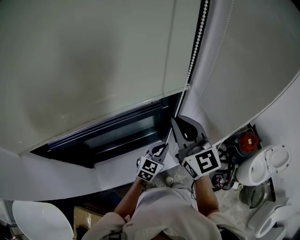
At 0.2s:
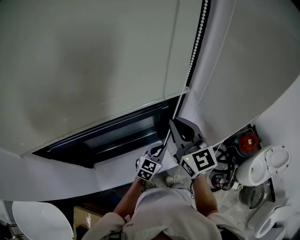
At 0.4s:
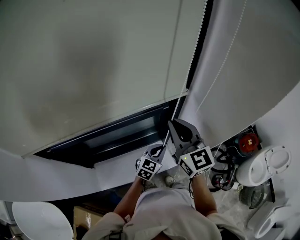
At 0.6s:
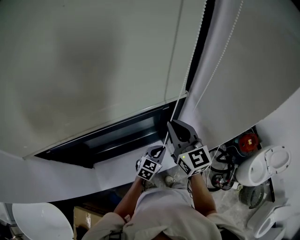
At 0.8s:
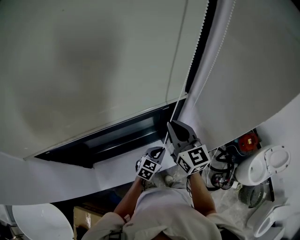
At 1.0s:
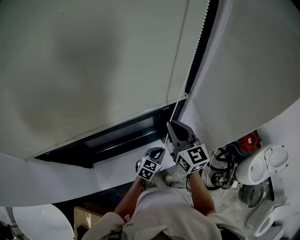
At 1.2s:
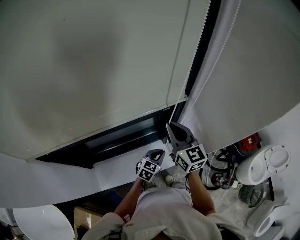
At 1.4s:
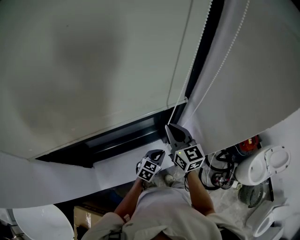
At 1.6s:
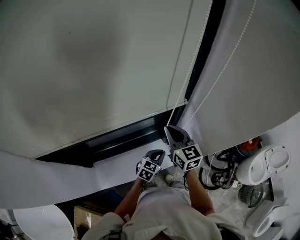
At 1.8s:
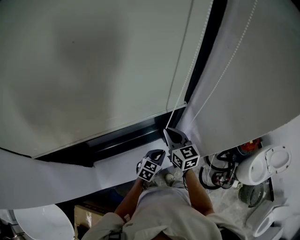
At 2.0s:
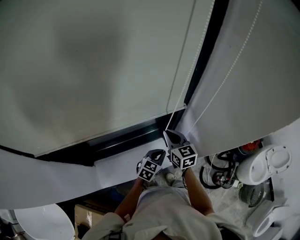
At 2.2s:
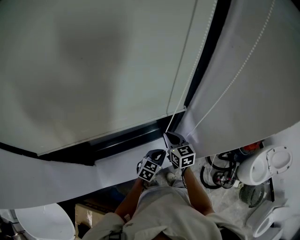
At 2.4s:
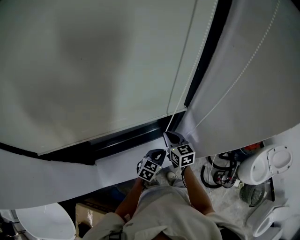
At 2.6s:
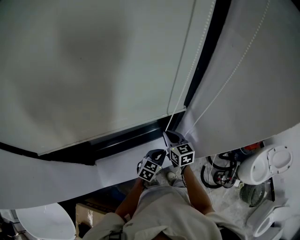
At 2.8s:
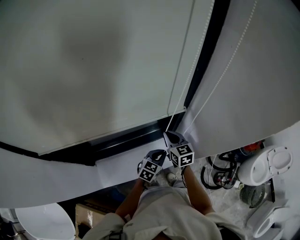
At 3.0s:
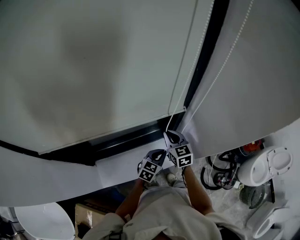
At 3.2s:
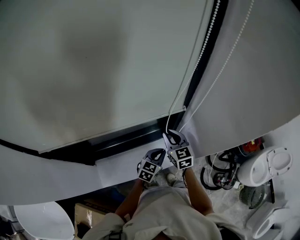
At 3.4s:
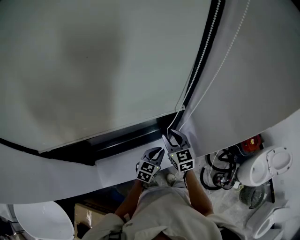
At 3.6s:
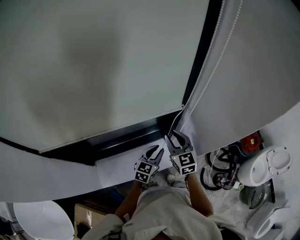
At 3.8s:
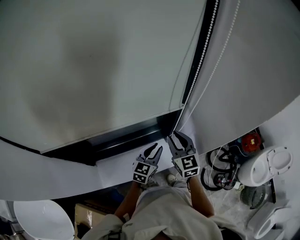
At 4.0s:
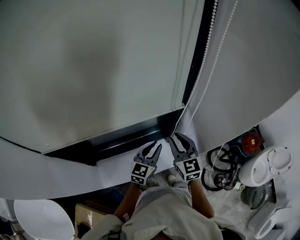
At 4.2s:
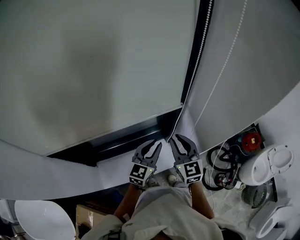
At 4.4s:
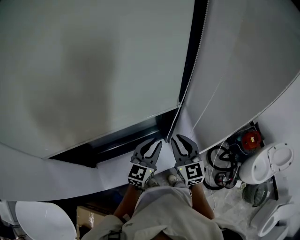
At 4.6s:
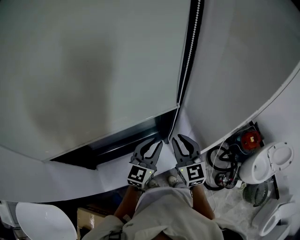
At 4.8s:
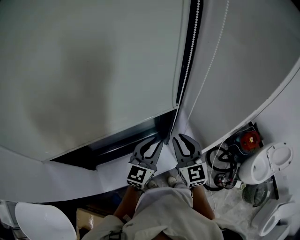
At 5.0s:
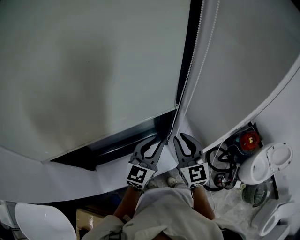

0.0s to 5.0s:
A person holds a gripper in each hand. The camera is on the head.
0.0s to 1.6s: The right gripper heads downward, covering approximately 15 cm, and changes its angle by some 20 degrees. Meanwhile the left gripper is displaced downward by about 10 cm.
1.6s to 3.4s: The right gripper moves downward, about 5 cm, and opens up.
3.4s to 5.0s: The right gripper travels upward and backward by some 15 cm. Meanwhile the left gripper travels upward by some 20 cm, and changes its angle by roughly 30 degrees.

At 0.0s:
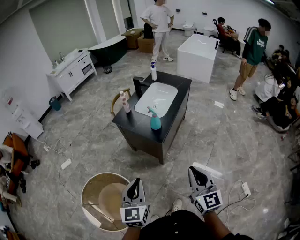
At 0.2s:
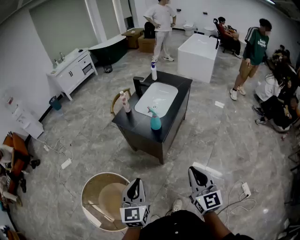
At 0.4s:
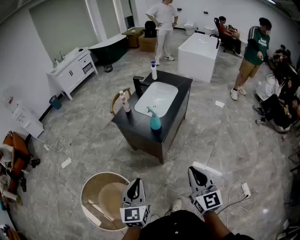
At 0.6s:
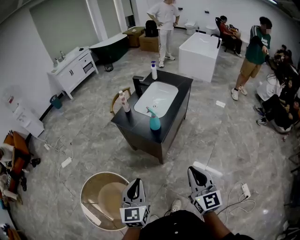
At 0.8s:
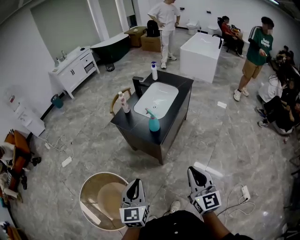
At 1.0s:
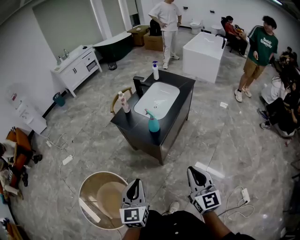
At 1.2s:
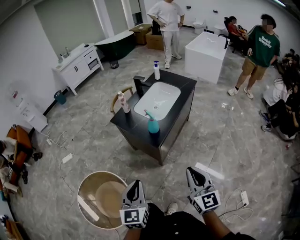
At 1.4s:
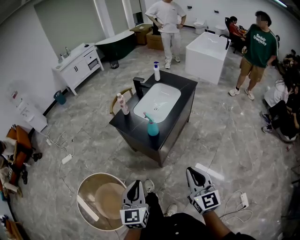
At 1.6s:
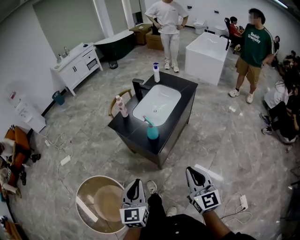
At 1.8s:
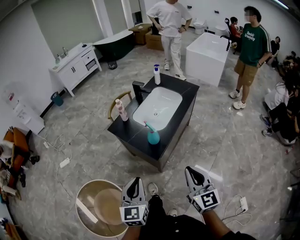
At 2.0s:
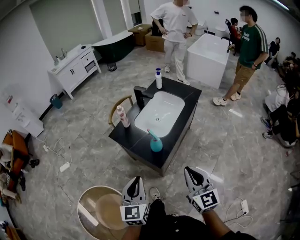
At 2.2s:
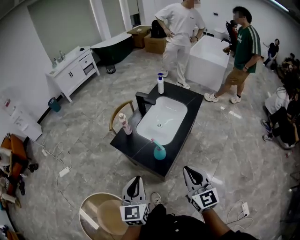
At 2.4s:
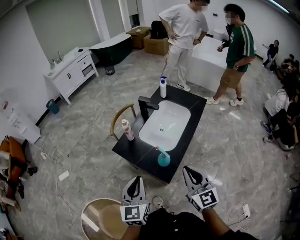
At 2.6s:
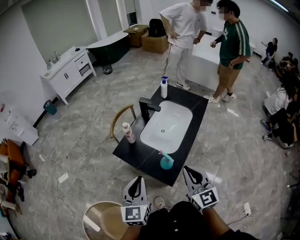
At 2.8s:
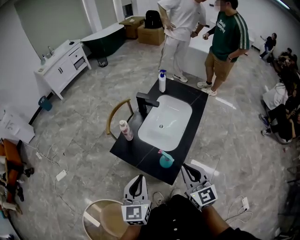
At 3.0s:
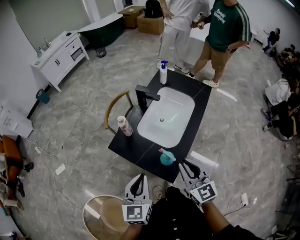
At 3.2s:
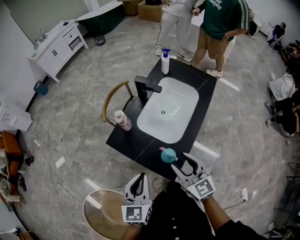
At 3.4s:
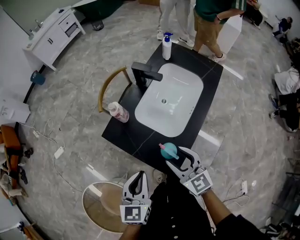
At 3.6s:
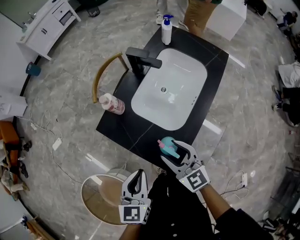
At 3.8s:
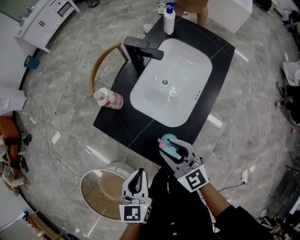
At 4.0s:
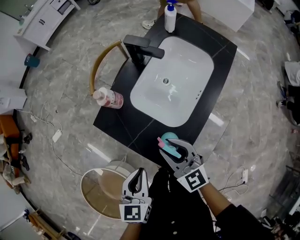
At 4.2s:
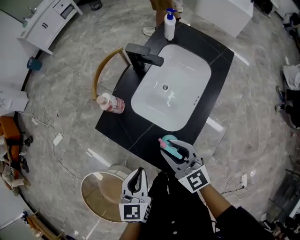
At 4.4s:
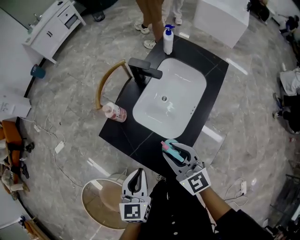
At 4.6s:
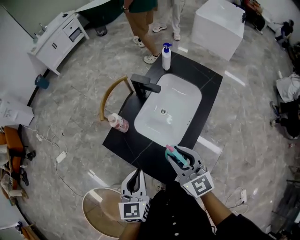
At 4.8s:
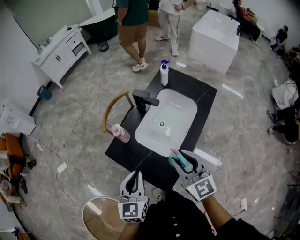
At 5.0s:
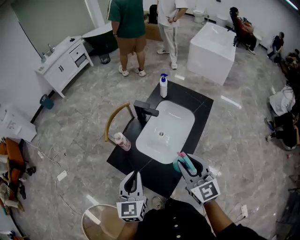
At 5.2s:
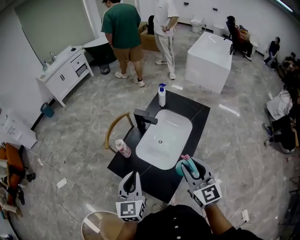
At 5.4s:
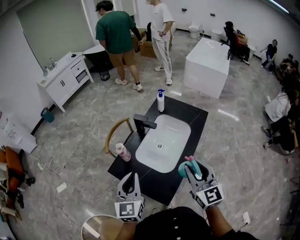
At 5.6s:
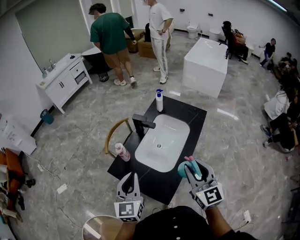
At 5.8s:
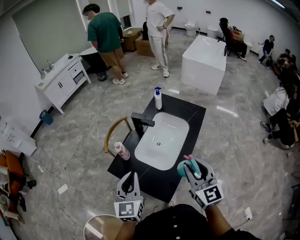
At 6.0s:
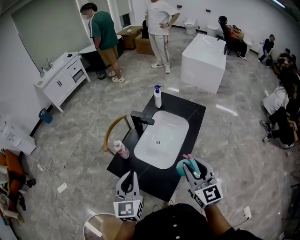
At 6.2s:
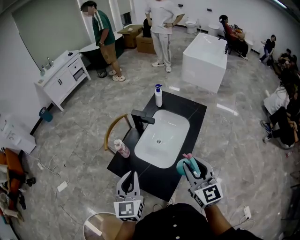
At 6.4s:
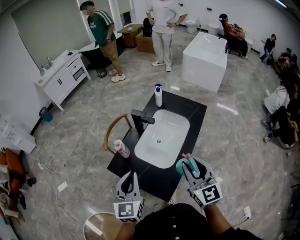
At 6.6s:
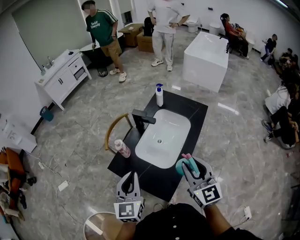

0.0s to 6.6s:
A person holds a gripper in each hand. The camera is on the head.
0.0s to 1.6s: The two grippers go approximately 10 cm forward and to the right.
1.6s to 3.2s: Both grippers move forward, approximately 30 cm. The right gripper opens its fingers.
3.2s to 5.0s: The right gripper shifts approximately 15 cm upward, to the right and forward. Meanwhile the left gripper shifts approximately 10 cm forward, and moves about 10 cm downward and comes back.
5.0s to 6.6s: The grippers move only a little.

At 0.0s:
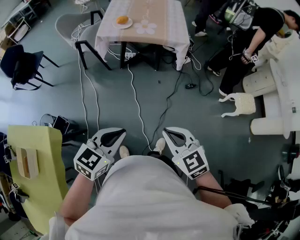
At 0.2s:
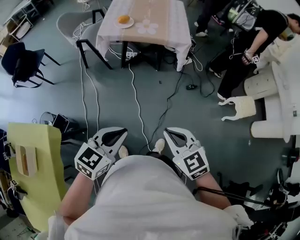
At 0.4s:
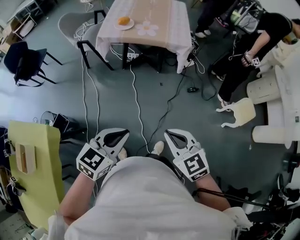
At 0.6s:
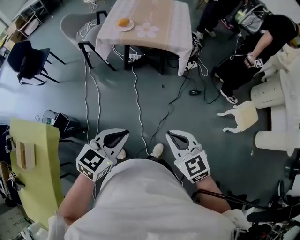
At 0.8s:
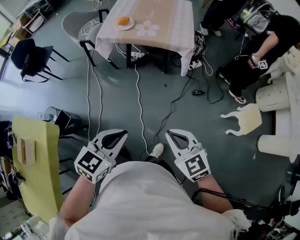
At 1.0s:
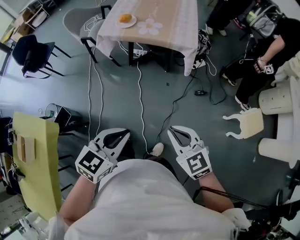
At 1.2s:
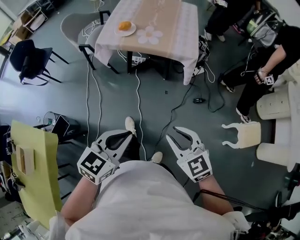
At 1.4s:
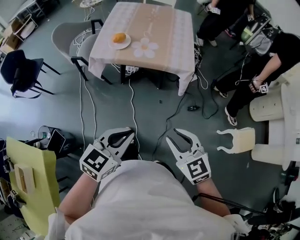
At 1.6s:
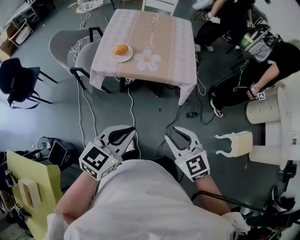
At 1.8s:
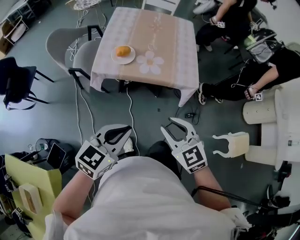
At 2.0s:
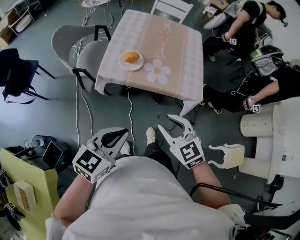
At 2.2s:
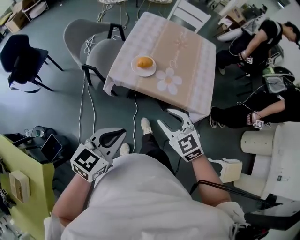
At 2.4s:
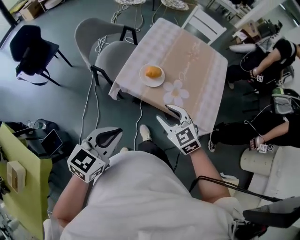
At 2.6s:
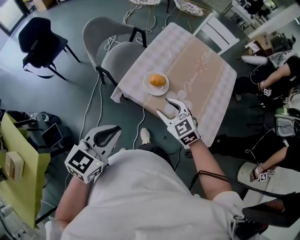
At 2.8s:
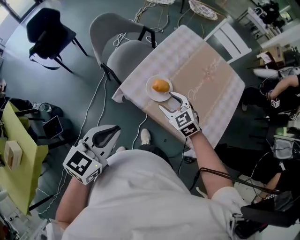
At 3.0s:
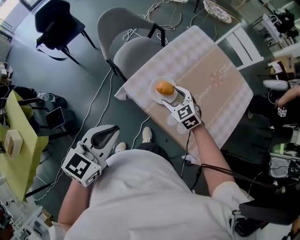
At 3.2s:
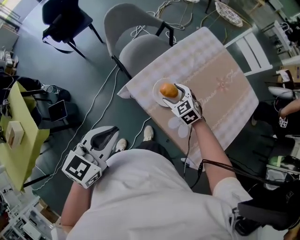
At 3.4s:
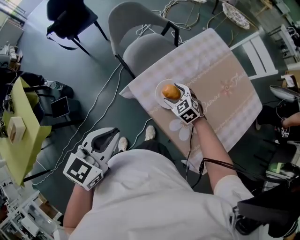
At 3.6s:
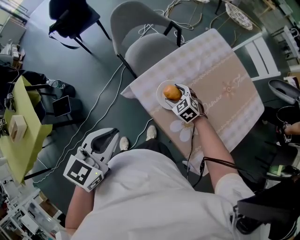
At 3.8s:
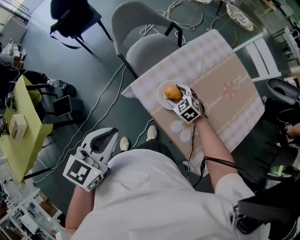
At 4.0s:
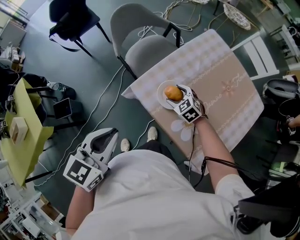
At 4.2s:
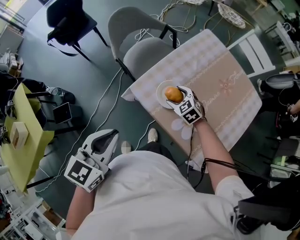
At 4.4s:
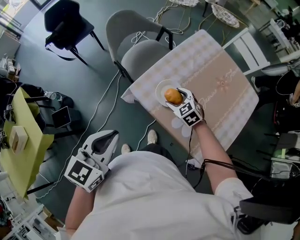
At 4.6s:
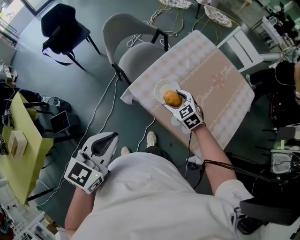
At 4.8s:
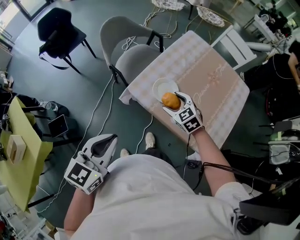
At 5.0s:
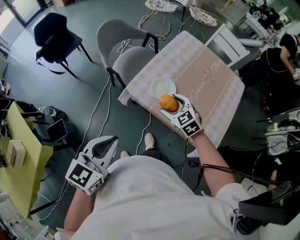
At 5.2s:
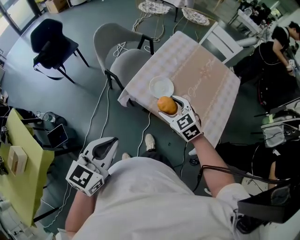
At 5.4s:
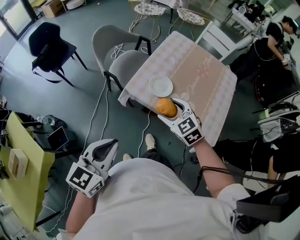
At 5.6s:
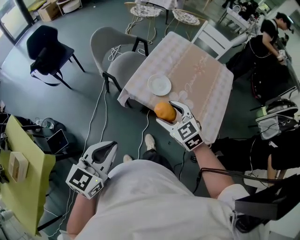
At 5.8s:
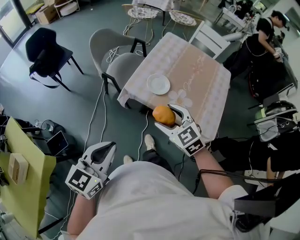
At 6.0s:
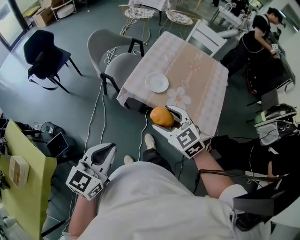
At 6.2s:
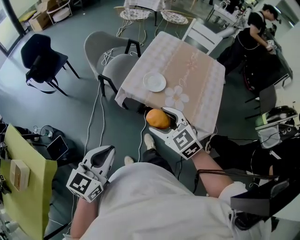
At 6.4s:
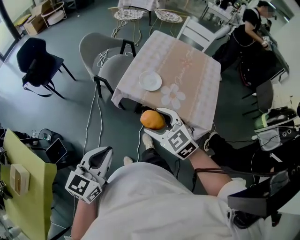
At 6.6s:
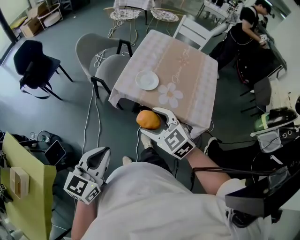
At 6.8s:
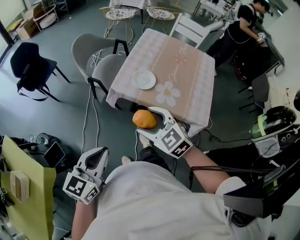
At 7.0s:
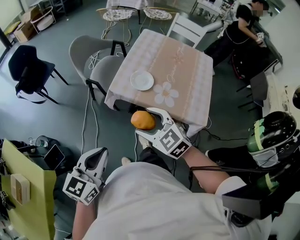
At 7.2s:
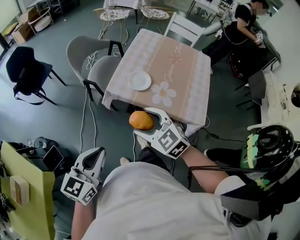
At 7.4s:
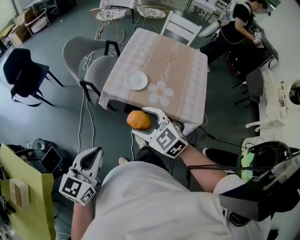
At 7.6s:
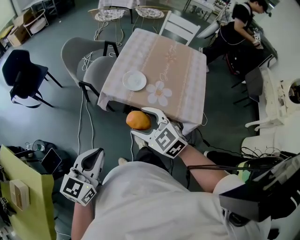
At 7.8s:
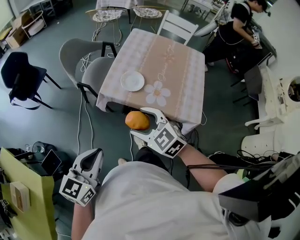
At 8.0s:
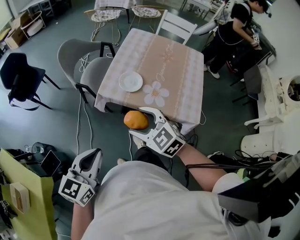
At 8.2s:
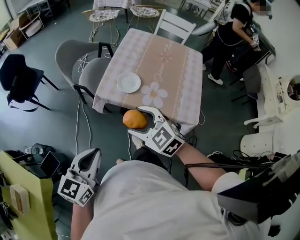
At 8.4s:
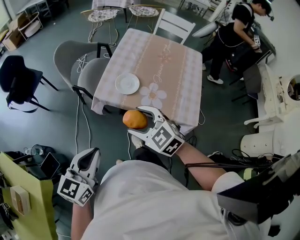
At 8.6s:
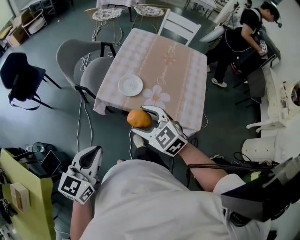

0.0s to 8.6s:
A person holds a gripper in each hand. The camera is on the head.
0.0s to 1.4s: The two grippers go some 25 cm forward.
1.4s to 2.8s: The right gripper ends up about 60 cm from where it was, rotates approximately 40 degrees, and opens its fingers, while the left gripper ends up approximately 35 cm from where it was, and rotates roughly 30 degrees.
2.8s to 4.4s: The right gripper travels downward and forward by about 10 cm.
4.4s to 5.8s: The right gripper moves backward and upward, some 30 cm. The left gripper heads backward and to the left, covering some 15 cm.
5.8s to 7.2s: The right gripper ends up some 5 cm from where it was.
7.2s to 8.6s: The left gripper moves forward, some 5 cm. The right gripper shifts roughly 5 cm to the right and forward.

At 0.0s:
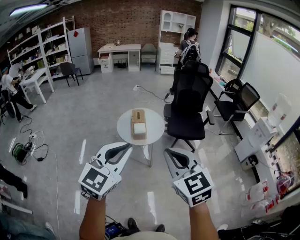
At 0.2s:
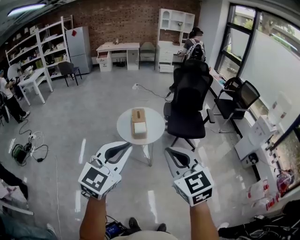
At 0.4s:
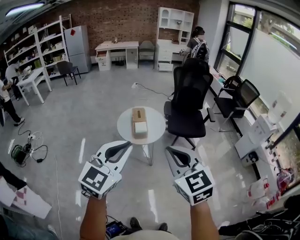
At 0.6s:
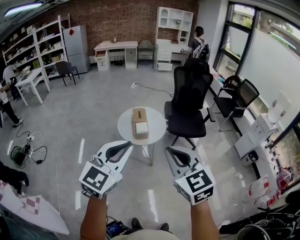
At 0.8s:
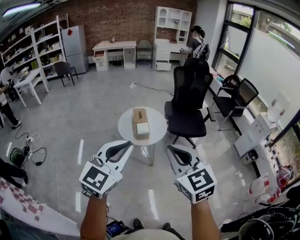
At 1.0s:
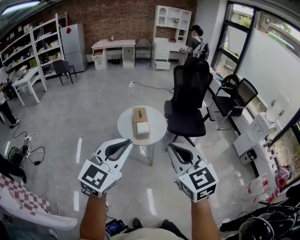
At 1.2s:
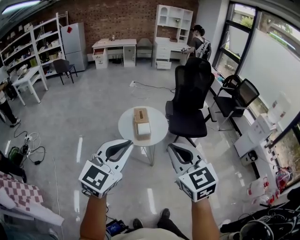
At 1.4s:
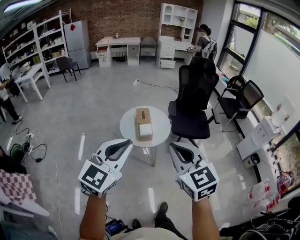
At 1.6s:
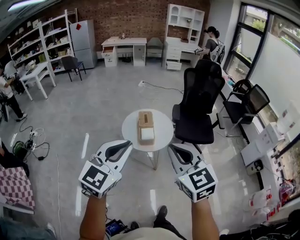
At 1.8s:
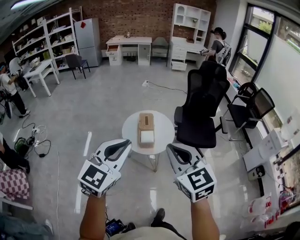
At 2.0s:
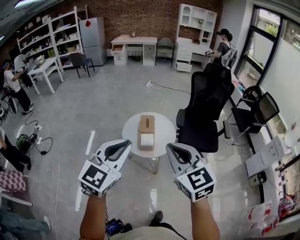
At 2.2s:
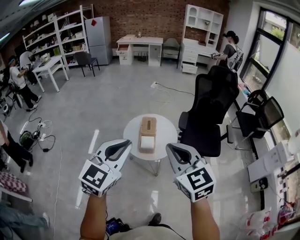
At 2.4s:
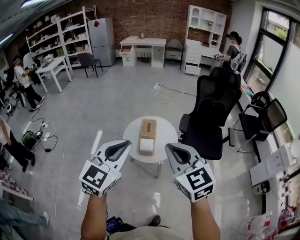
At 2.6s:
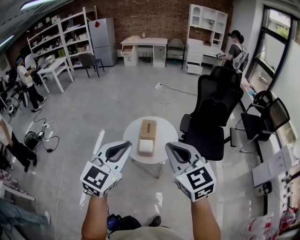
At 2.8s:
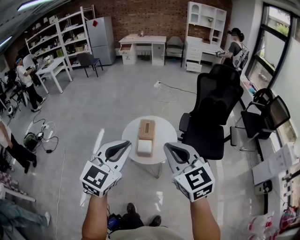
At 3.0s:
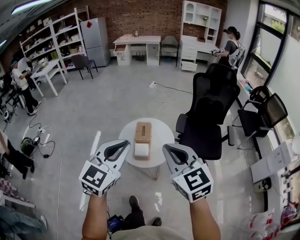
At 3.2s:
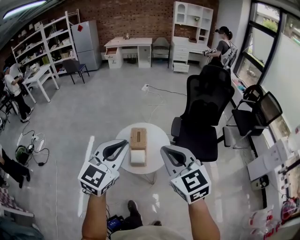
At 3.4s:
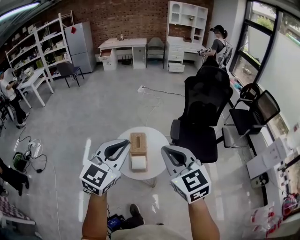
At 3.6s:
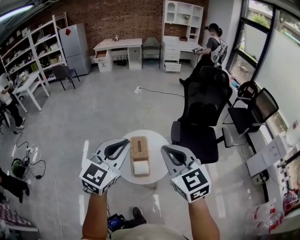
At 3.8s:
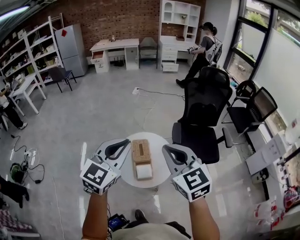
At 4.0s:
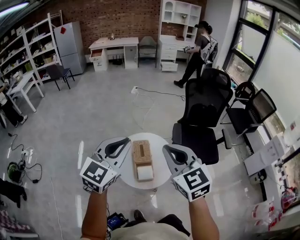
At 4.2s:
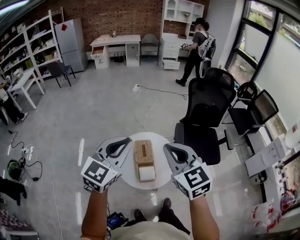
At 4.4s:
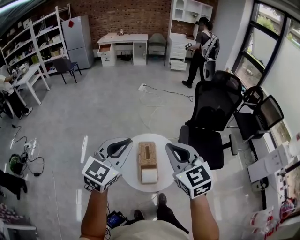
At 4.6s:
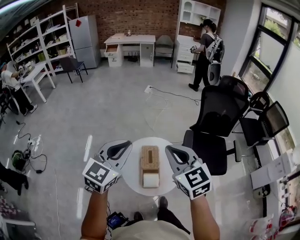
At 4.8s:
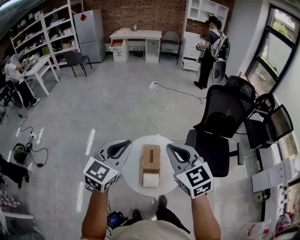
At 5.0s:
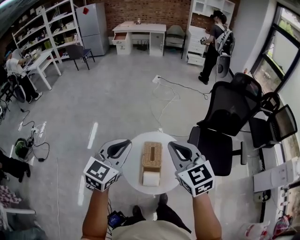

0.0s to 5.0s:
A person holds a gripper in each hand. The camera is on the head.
0.0s to 1.6s: The grippers both shift forward and to the left by some 15 cm.
1.6s to 3.4s: Both grippers move forward, about 25 cm.
3.4s to 5.0s: The left gripper shifts approximately 25 cm forward, to the left and downward; the right gripper goes about 25 cm forward.
